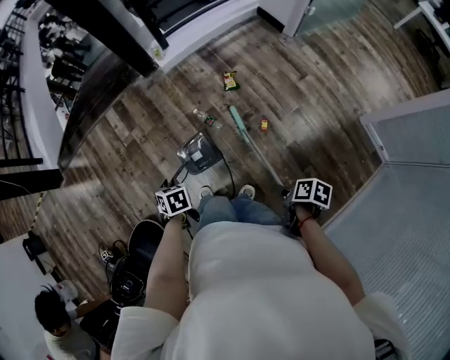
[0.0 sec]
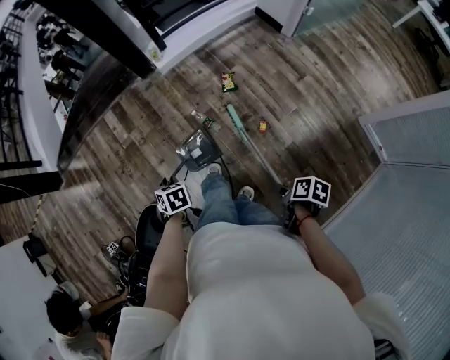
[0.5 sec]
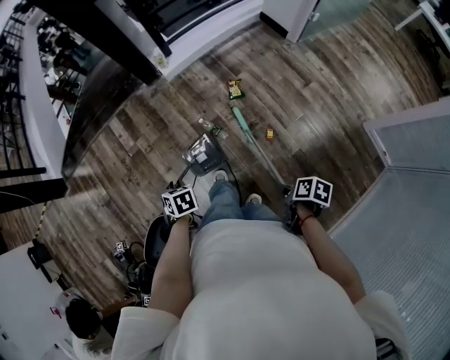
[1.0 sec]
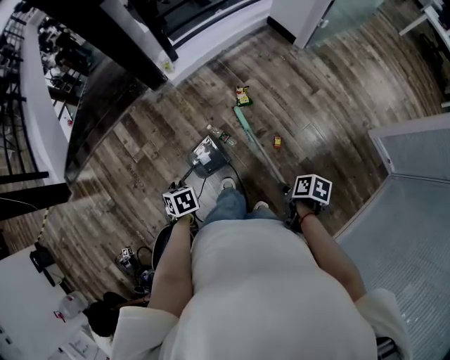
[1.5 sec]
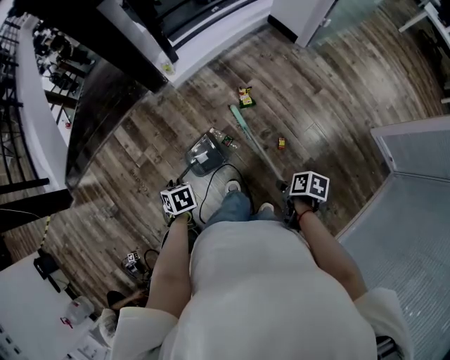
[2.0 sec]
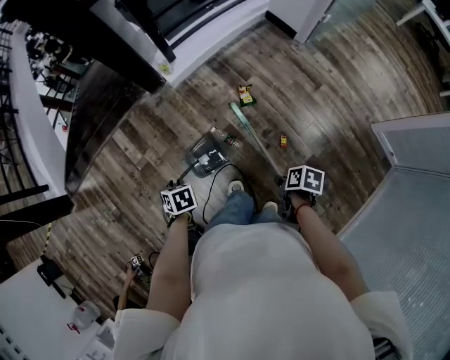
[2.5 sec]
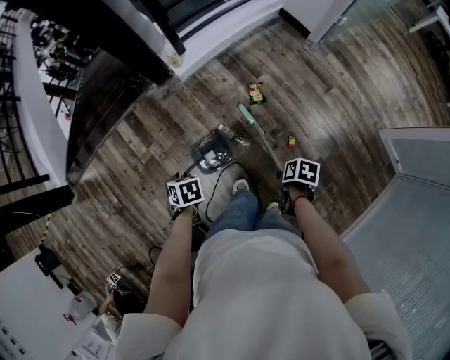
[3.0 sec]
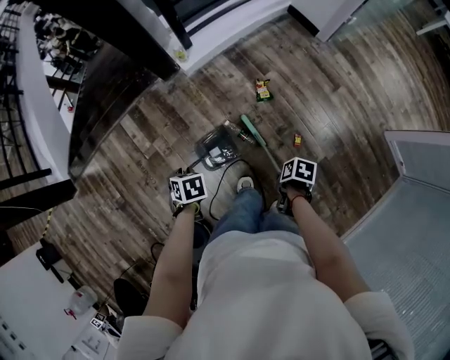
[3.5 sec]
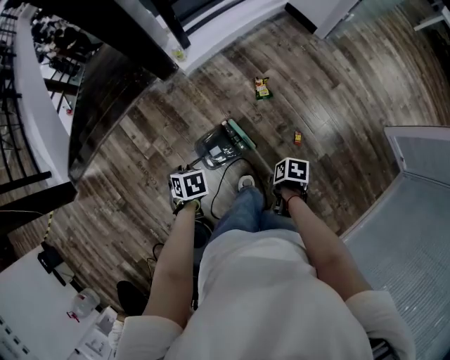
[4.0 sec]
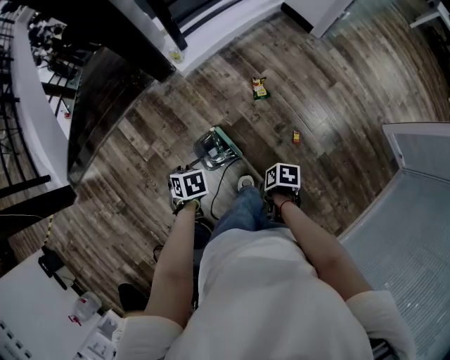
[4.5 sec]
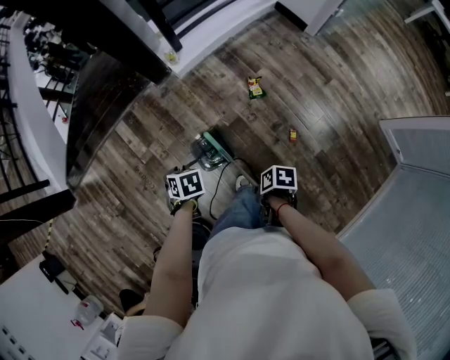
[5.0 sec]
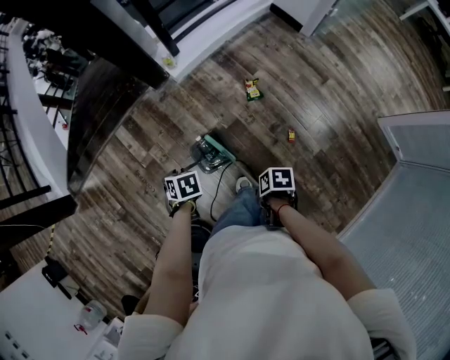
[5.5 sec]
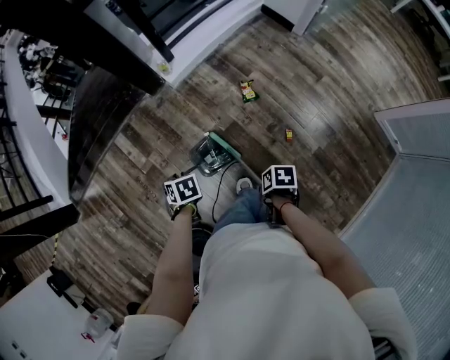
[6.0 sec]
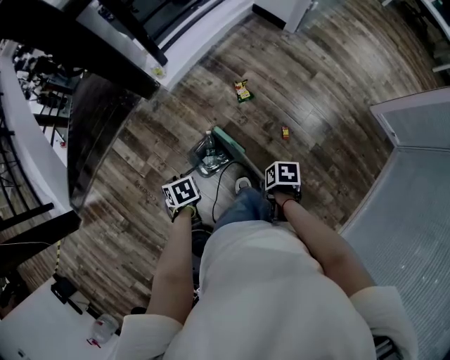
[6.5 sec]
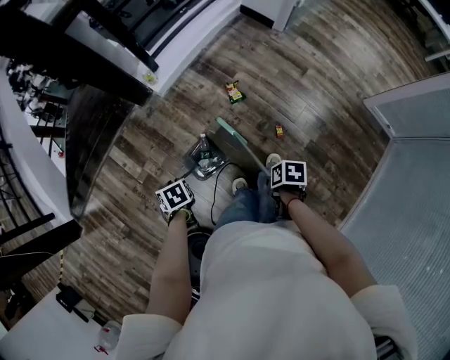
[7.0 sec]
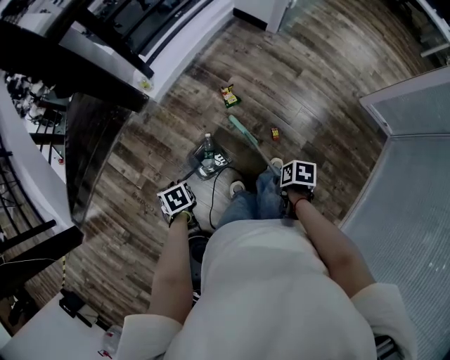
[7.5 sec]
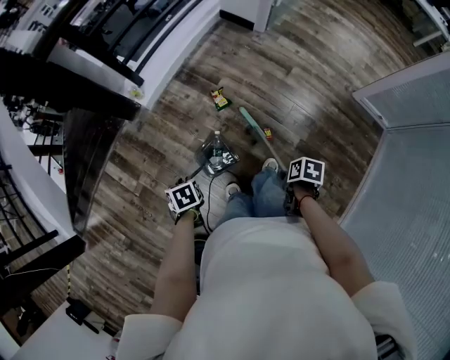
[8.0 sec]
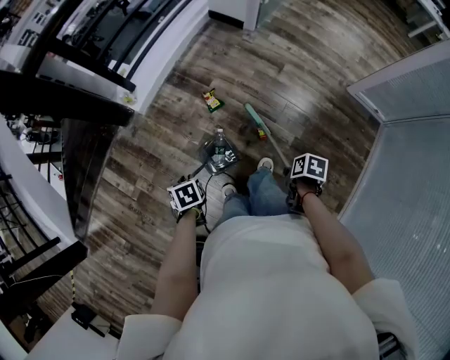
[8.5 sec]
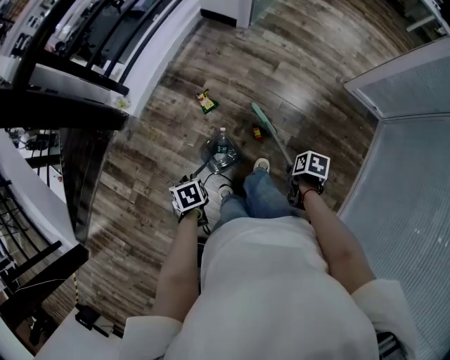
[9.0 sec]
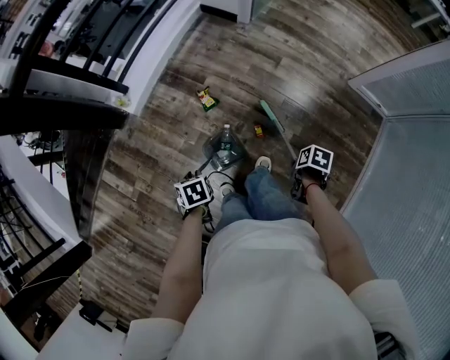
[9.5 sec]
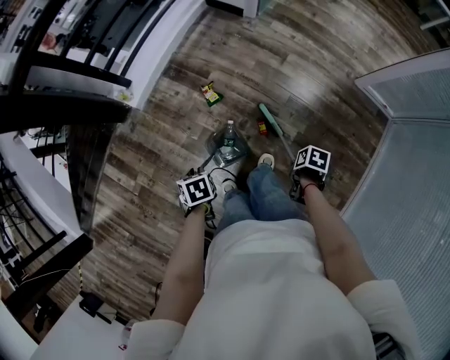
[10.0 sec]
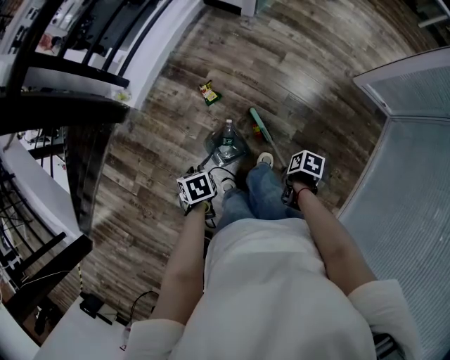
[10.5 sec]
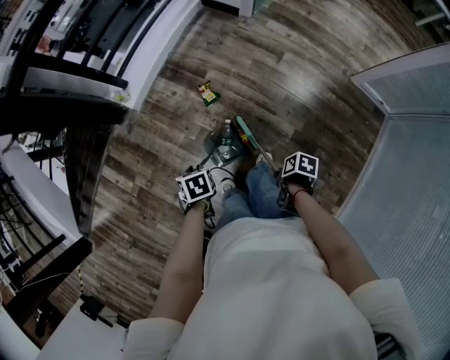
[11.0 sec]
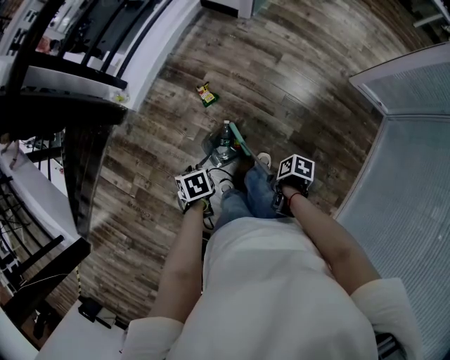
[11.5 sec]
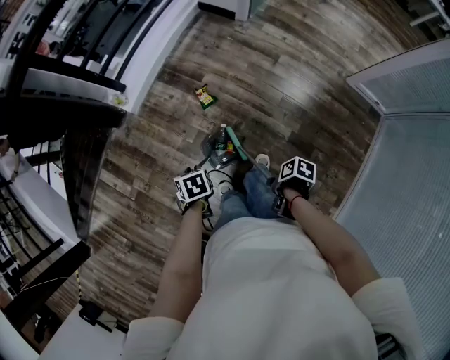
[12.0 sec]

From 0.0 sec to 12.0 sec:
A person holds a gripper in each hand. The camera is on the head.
From 0.0 sec to 2.0 sec: The left gripper changes place by some 20 cm.
From 2.0 sec to 4.0 sec: The left gripper moves some 10 cm.
From 6.0 sec to 8.0 sec: The left gripper ends up approximately 15 cm from where it was.
From 8.0 sec to 10.0 sec: The left gripper ends up roughly 15 cm from where it was.

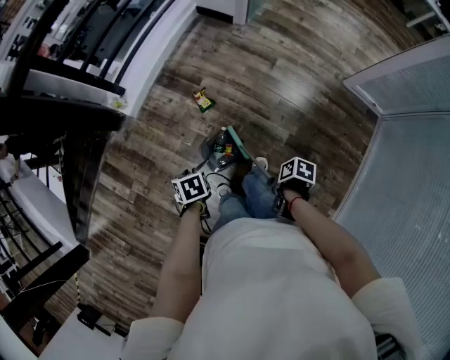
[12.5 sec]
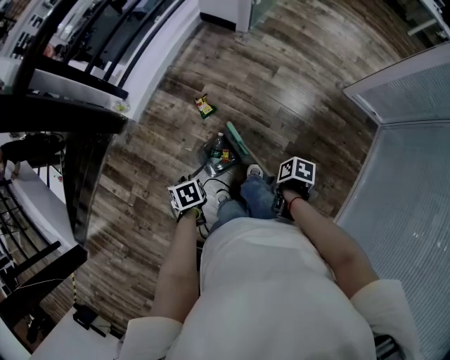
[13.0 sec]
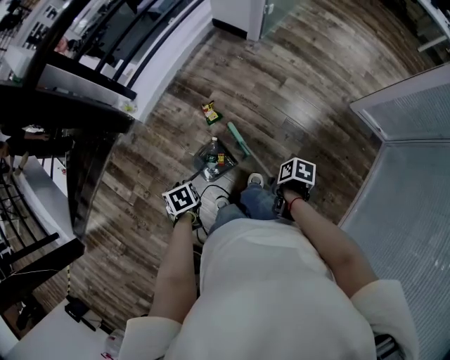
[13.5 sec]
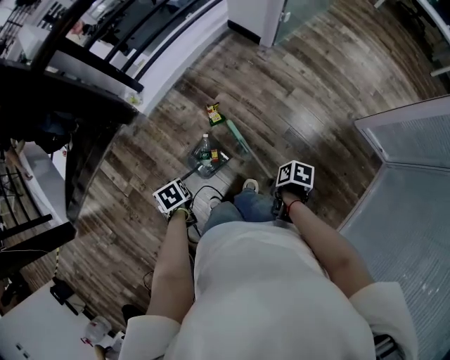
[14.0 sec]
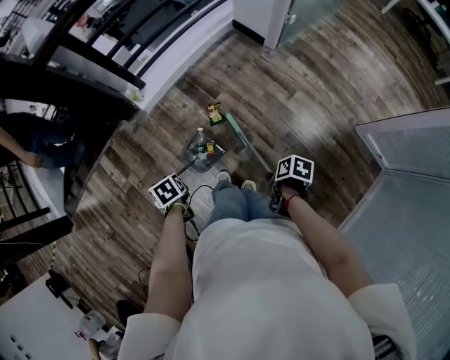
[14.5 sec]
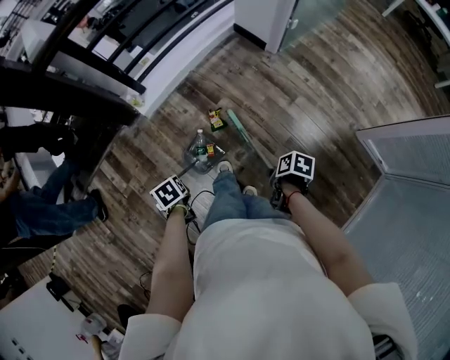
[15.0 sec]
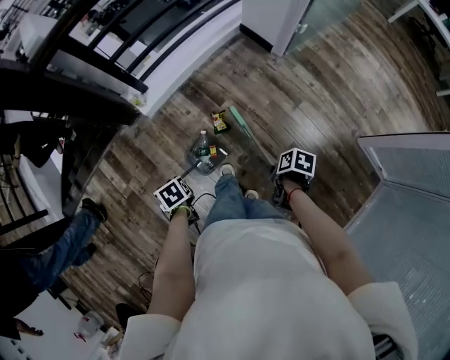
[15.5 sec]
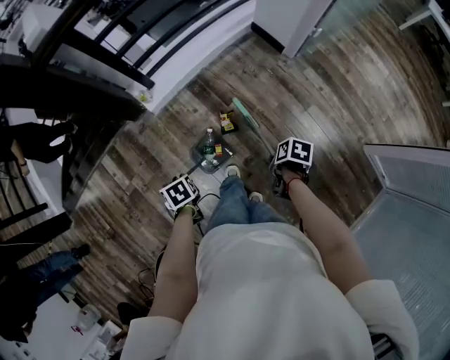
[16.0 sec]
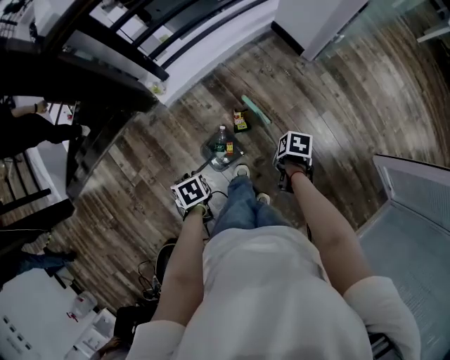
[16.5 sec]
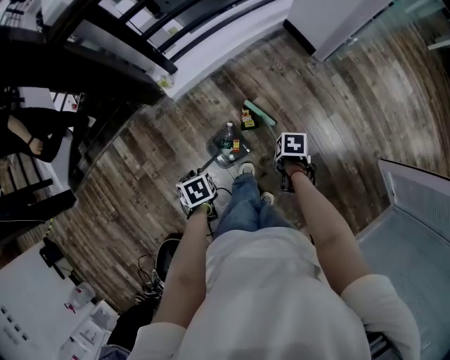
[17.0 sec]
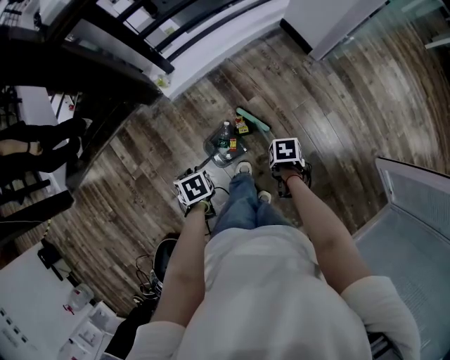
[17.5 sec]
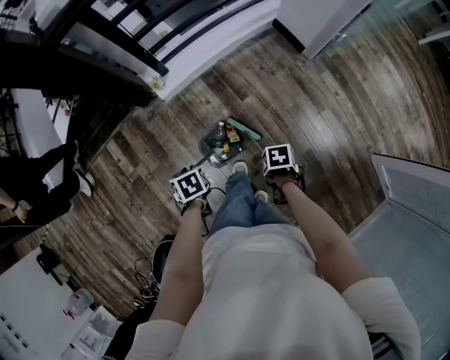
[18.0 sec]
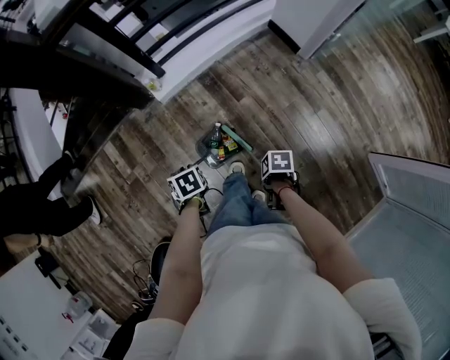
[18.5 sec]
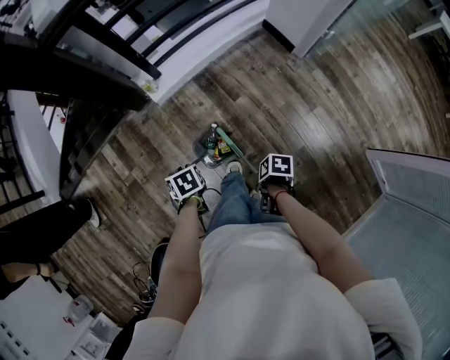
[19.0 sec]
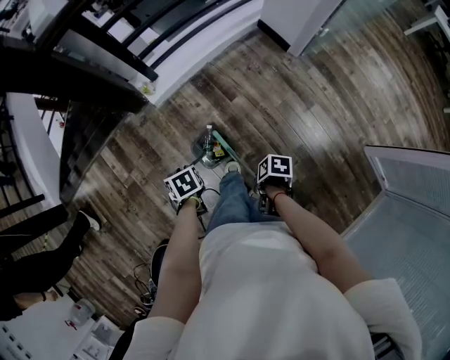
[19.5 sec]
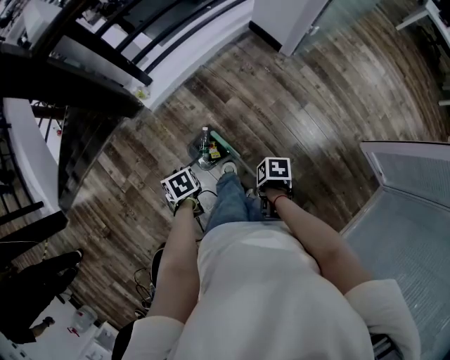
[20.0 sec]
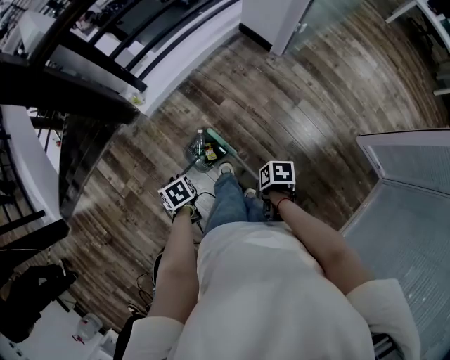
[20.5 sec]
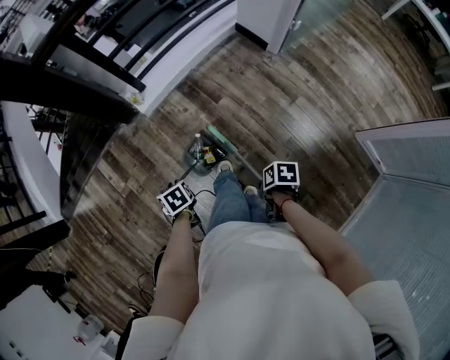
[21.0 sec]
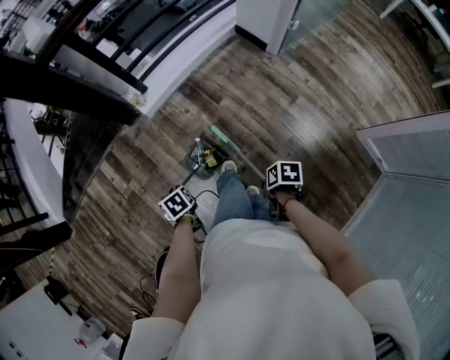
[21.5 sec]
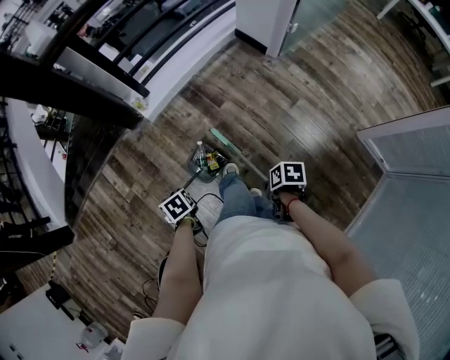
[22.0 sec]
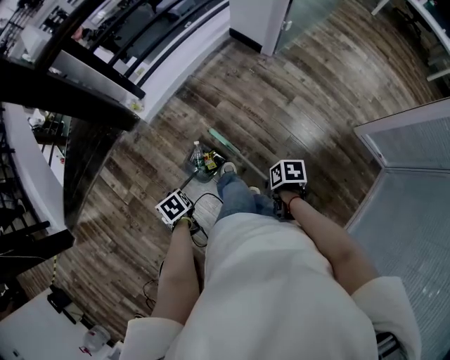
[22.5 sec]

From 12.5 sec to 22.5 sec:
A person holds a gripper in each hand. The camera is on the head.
From 12.5 sec to 14.5 sec: The left gripper shifts by about 5 cm, and swivels some 30 degrees.
From 14.5 sec to 16.5 sec: The left gripper shifts by roughly 15 cm.
From 18.5 sec to 20.5 sec: The left gripper ends up about 5 cm from where it was.
From 20.5 sec to 22.5 sec: The left gripper moves some 10 cm.

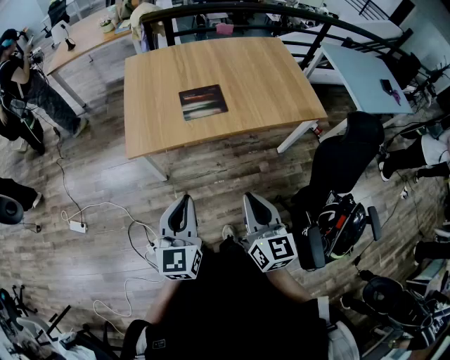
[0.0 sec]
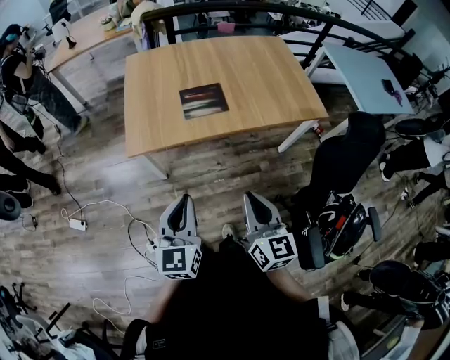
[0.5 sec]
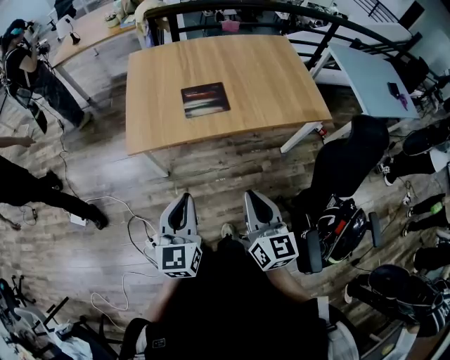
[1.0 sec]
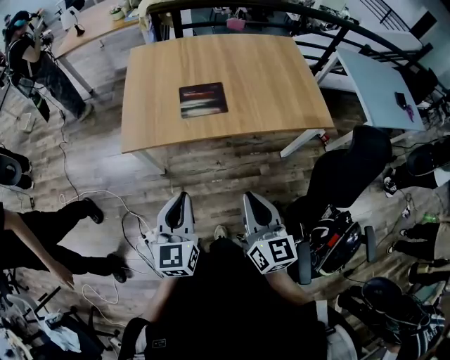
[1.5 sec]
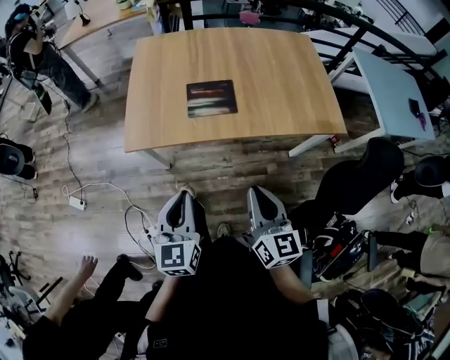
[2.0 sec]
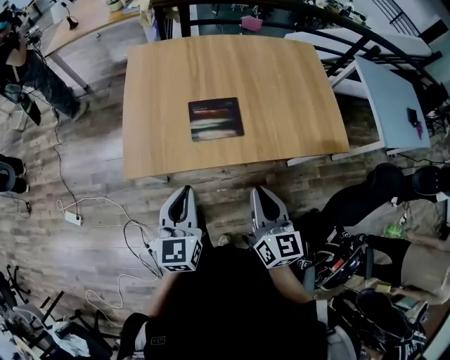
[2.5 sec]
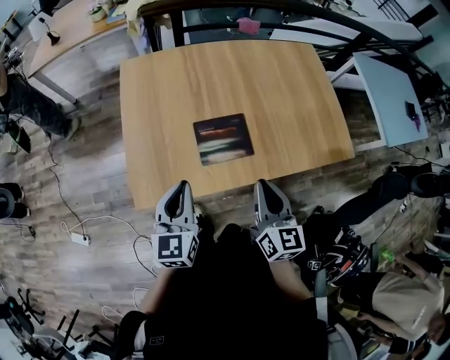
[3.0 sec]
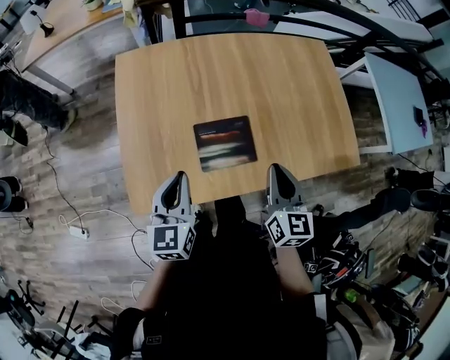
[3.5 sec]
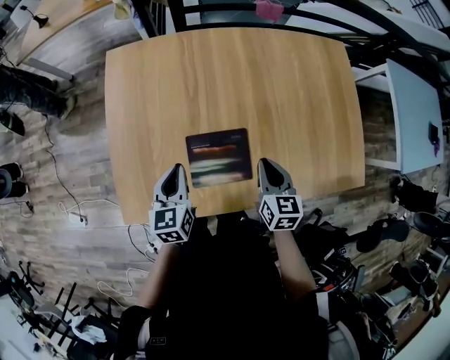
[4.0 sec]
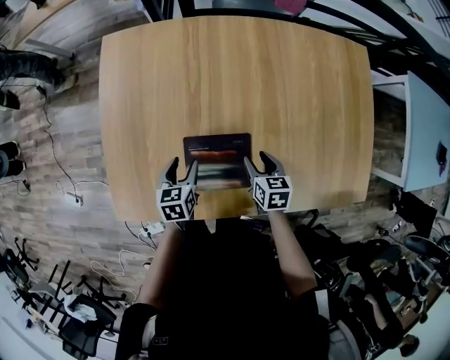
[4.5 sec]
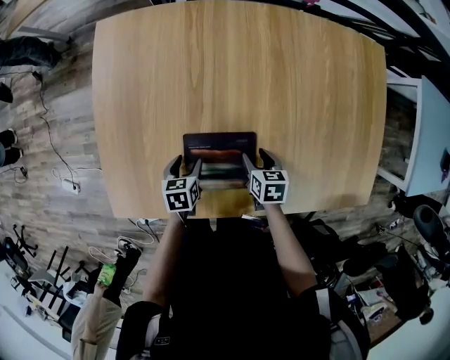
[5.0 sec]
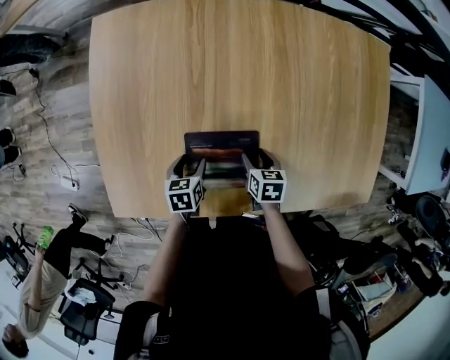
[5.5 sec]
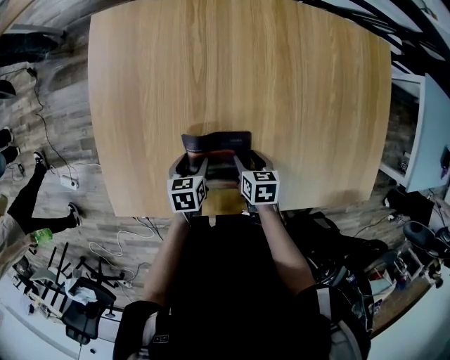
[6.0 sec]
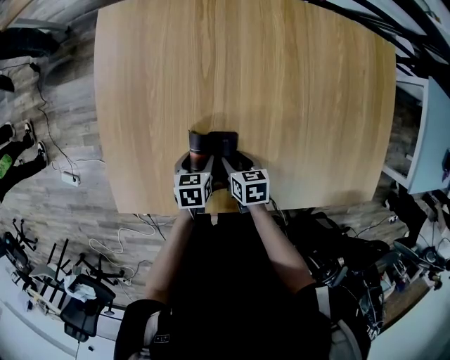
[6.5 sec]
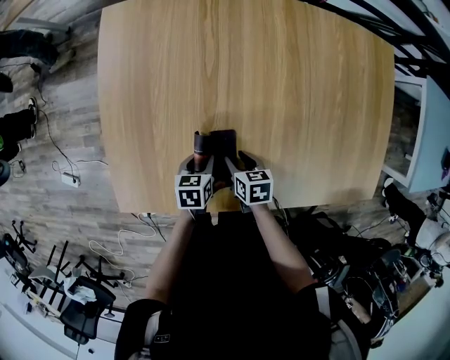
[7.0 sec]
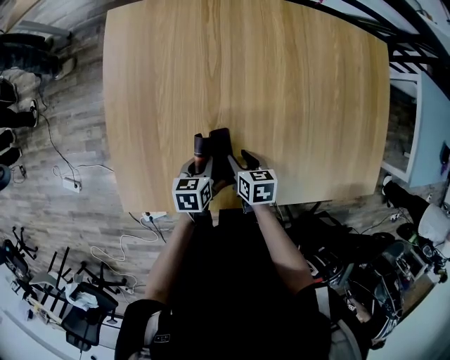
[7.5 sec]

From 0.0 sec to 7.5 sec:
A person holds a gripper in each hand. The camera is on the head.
From 0.0 sec to 2.0 sec: The left gripper is displaced forward by about 5 cm; the right gripper heads forward and to the right, covering about 10 cm.
From 2.0 sec to 4.0 sec: Both grippers are carried forward, roughly 50 cm. The right gripper swivels about 20 degrees.
From 4.0 sec to 5.5 sec: The grippers both shift downward by approximately 20 cm. The left gripper swivels roughly 30 degrees, and opens. The right gripper turns by roughly 30 degrees, and opens its fingers.
From 5.5 sec to 7.5 sec: The right gripper moves to the left, approximately 10 cm; the left gripper closes.
